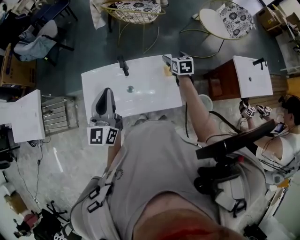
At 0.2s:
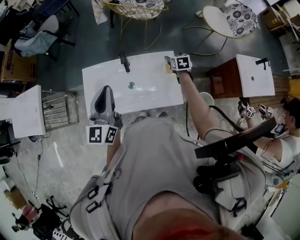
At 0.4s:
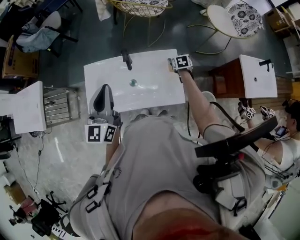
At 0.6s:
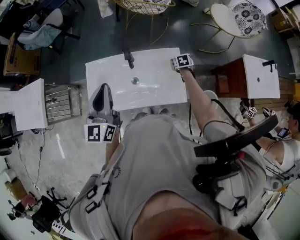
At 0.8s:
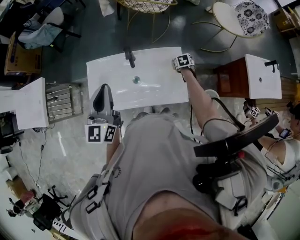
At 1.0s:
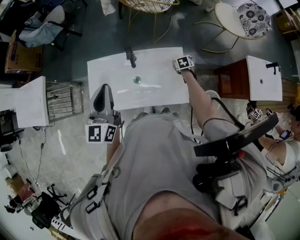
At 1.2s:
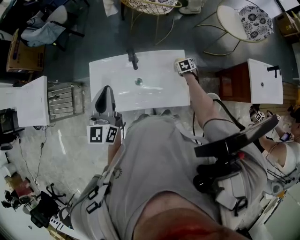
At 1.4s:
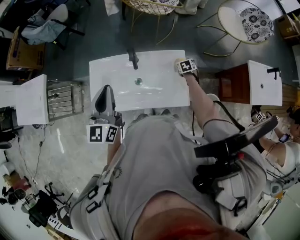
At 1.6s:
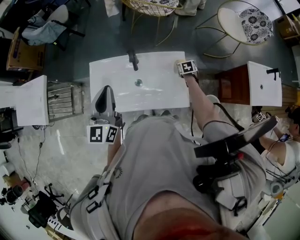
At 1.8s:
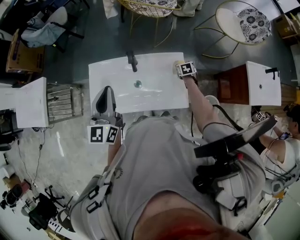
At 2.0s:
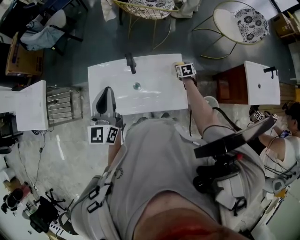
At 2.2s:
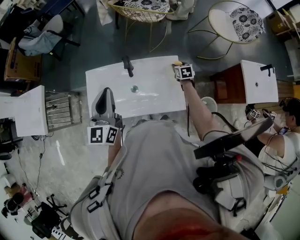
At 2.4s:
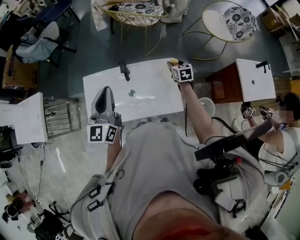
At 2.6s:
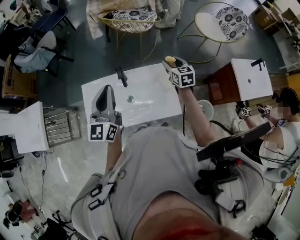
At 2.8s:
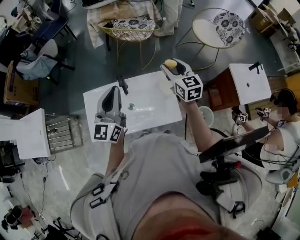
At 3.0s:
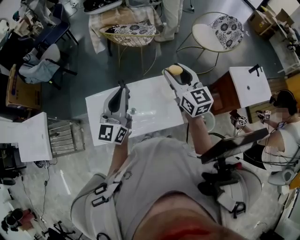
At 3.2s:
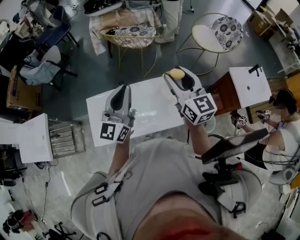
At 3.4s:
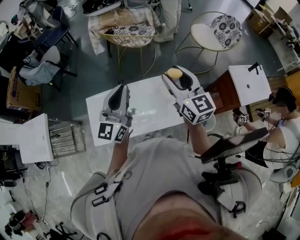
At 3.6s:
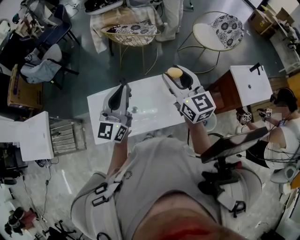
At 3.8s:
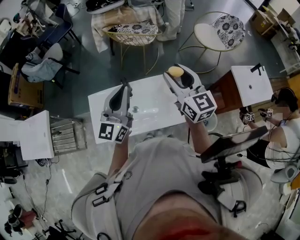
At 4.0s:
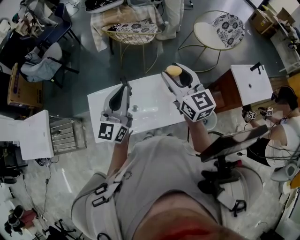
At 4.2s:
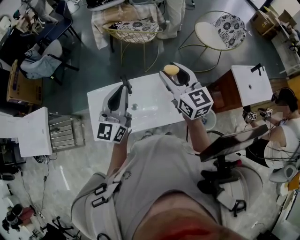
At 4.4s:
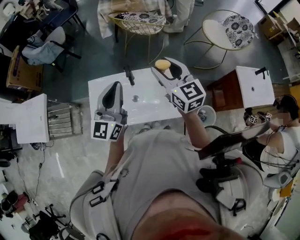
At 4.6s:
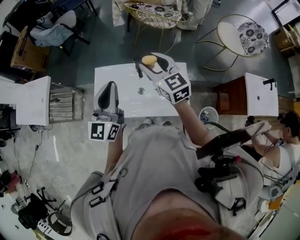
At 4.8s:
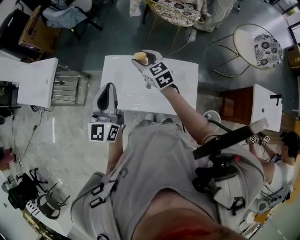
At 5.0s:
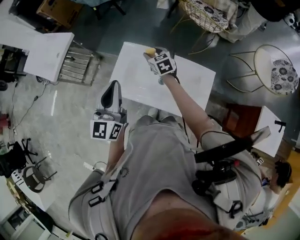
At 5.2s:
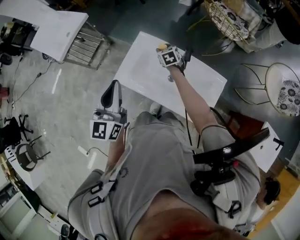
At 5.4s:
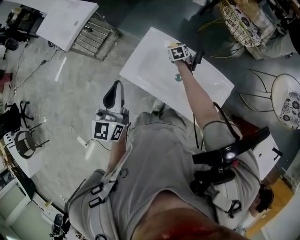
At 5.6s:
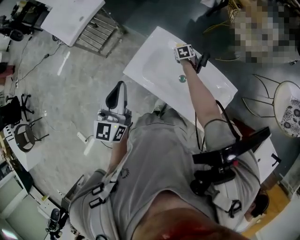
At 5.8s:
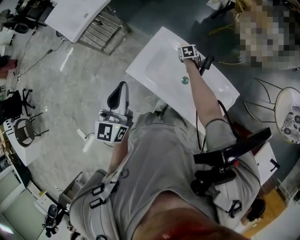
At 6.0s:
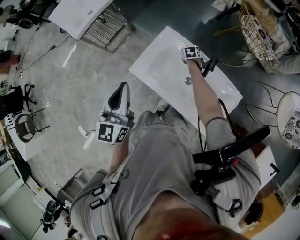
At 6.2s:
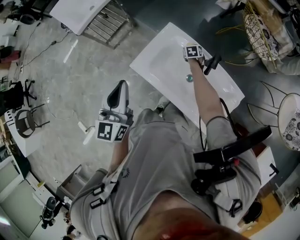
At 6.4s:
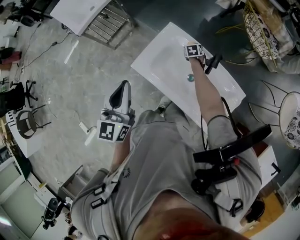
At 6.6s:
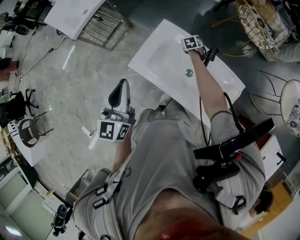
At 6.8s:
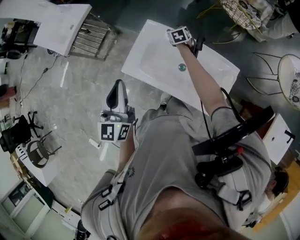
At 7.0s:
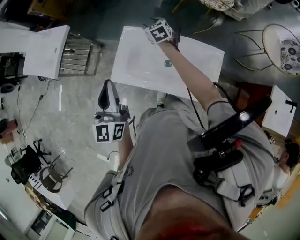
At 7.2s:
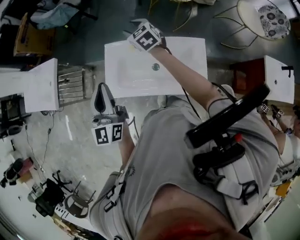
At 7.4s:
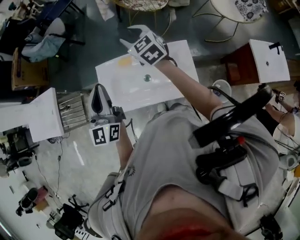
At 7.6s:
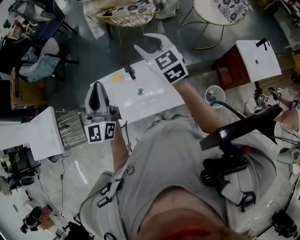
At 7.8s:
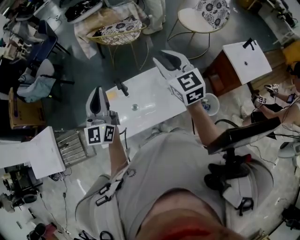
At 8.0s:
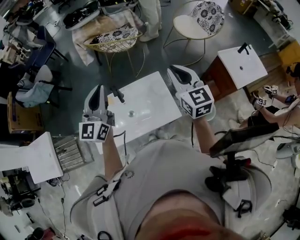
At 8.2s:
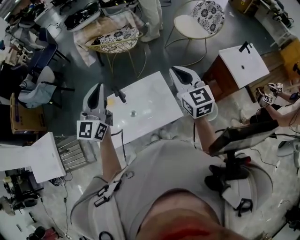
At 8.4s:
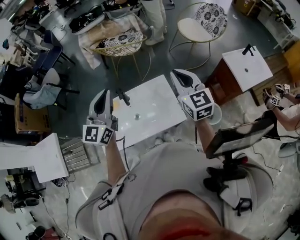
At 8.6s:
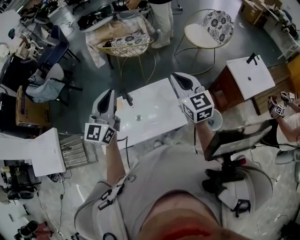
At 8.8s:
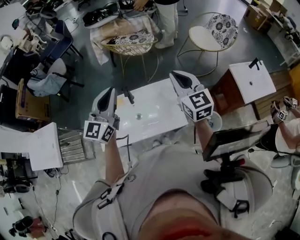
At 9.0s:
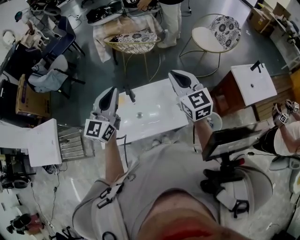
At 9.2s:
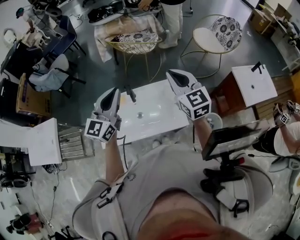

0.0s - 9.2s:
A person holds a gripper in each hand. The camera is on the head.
0.0s - 1.6s: The right gripper is displaced downward by approximately 20 cm, swivels about 20 degrees, and closes up.
1.6s - 3.0s: The right gripper moves upward, some 50 cm, and points its fingers some 60 degrees further upward; the left gripper moves to the right, upward and forward, roughly 10 cm, and swivels approximately 20 degrees.
3.0s - 4.6s: The left gripper goes approximately 10 cm to the left. Meanwhile the right gripper shifts about 15 cm to the left, and rotates approximately 20 degrees.
4.6s - 6.2s: The left gripper moves roughly 25 cm, and changes its angle by some 40 degrees. The right gripper moves downward, some 50 cm, and tips its fingers downward by about 50 degrees.
6.2s - 7.6s: The left gripper moves roughly 25 cm, and swivels about 50 degrees; the right gripper shifts approximately 50 cm upward, and points its fingers roughly 40 degrees further upward.
7.6s - 9.2s: The left gripper is displaced to the right by about 10 cm, and changes its angle by approximately 20 degrees, while the right gripper moves to the right and backward, some 15 cm.

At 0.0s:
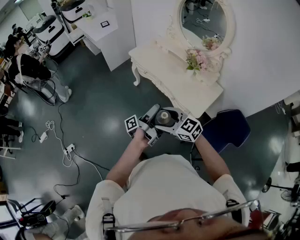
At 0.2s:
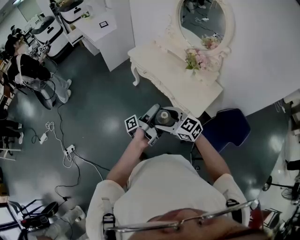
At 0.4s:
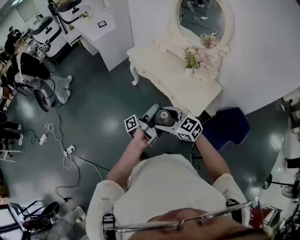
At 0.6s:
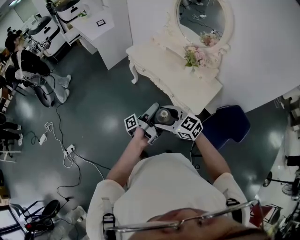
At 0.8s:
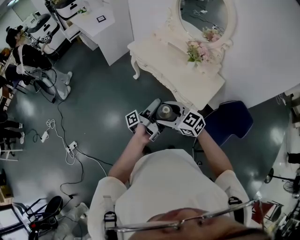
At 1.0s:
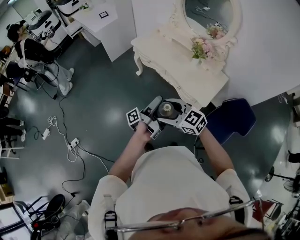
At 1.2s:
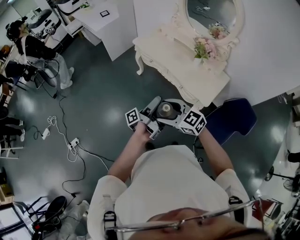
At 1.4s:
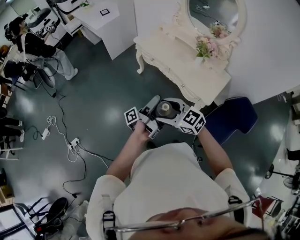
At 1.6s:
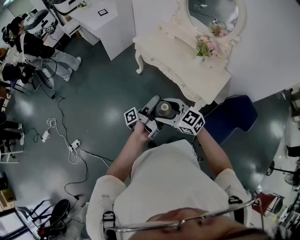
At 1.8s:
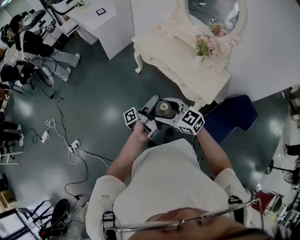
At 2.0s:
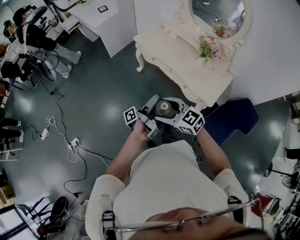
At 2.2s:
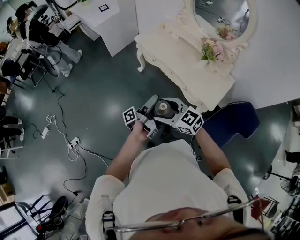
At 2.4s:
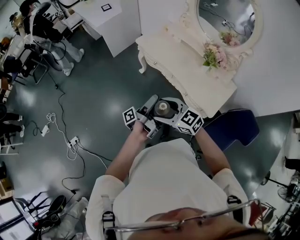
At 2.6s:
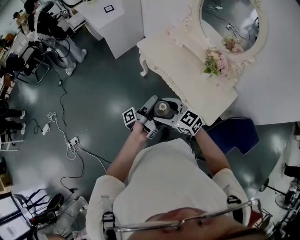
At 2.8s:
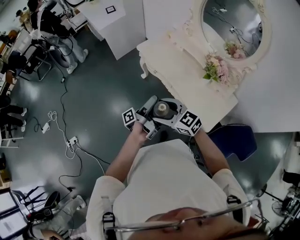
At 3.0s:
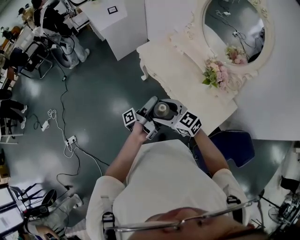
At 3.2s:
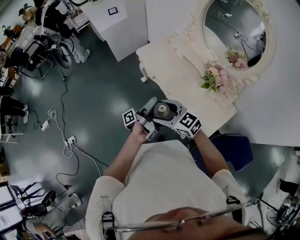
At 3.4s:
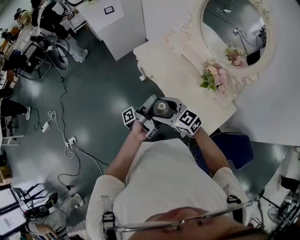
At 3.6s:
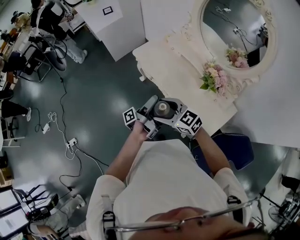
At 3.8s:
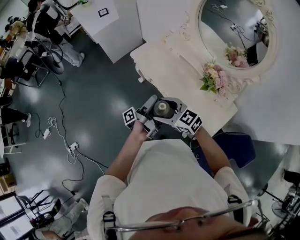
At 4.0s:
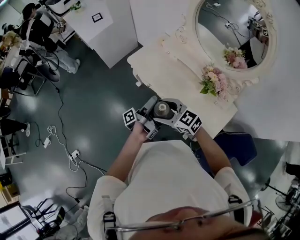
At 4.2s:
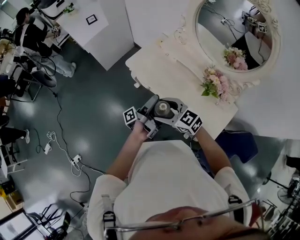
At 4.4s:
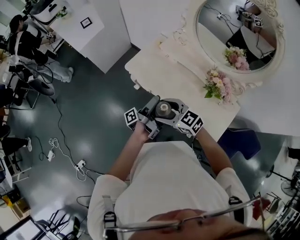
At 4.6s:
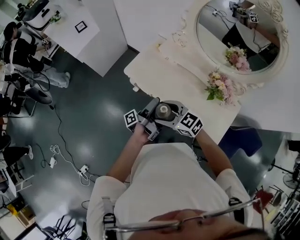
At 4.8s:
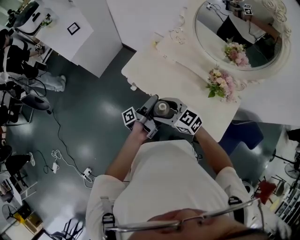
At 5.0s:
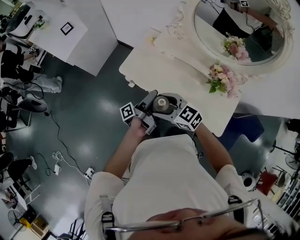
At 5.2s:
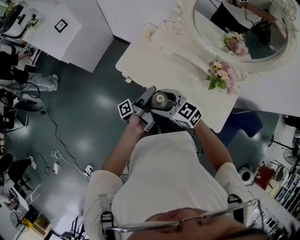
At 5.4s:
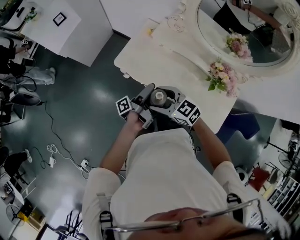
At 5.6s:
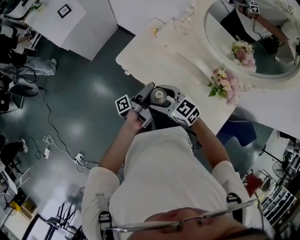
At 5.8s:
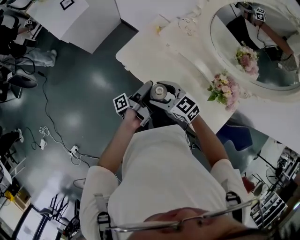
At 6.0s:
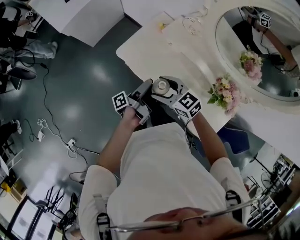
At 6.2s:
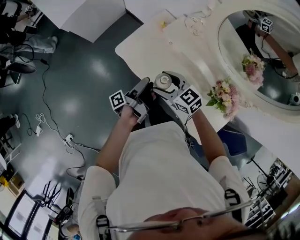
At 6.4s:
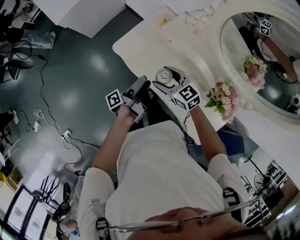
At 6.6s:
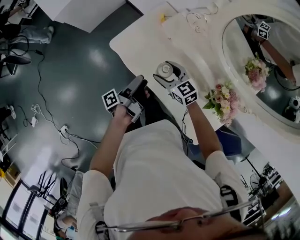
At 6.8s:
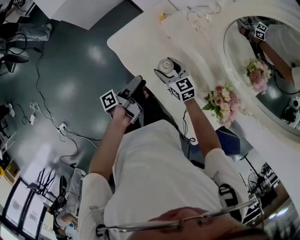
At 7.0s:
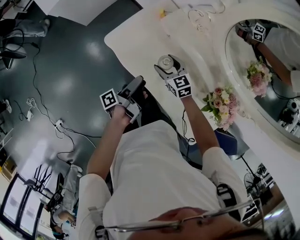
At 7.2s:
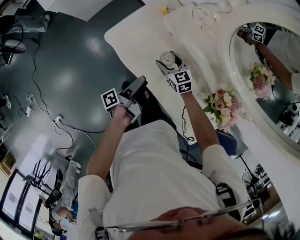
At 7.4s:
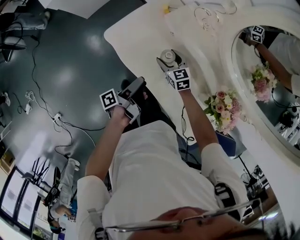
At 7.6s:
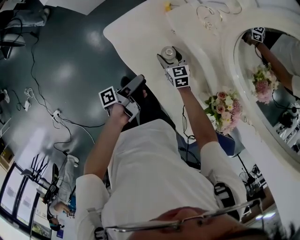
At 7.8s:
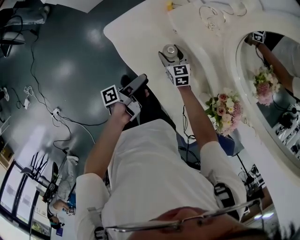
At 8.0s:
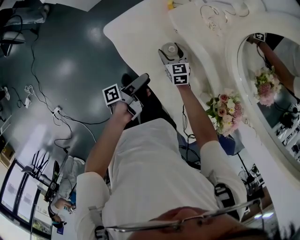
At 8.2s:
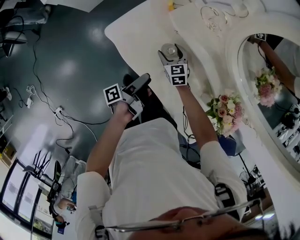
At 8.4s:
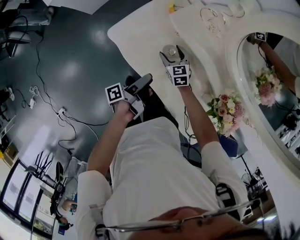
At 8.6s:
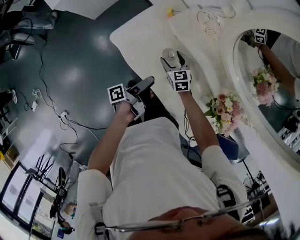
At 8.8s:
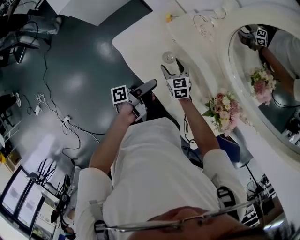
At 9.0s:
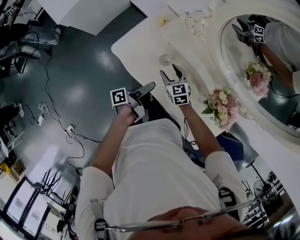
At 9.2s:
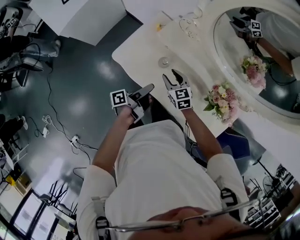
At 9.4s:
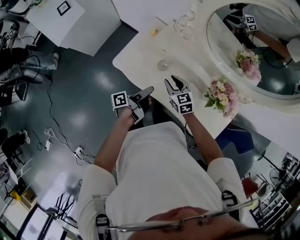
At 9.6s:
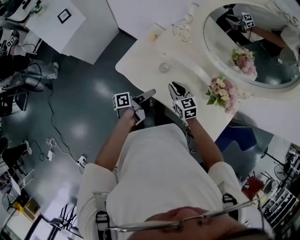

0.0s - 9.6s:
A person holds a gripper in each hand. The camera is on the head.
0.0s - 1.6s: The right gripper ends up approximately 10 cm from where it was.
1.6s - 3.2s: The right gripper changes place by some 25 cm.
3.2s - 4.8s: The right gripper changes place by approximately 25 cm.
4.8s - 6.4s: The right gripper ends up about 20 cm from where it was.
6.4s - 8.0s: The right gripper goes roughly 20 cm downward, and rotates roughly 20 degrees.
8.0s - 9.6s: The right gripper shifts some 20 cm upward, and closes up.

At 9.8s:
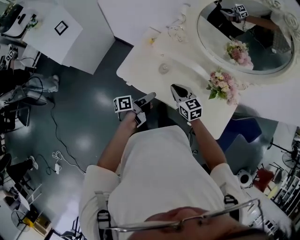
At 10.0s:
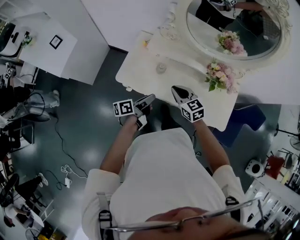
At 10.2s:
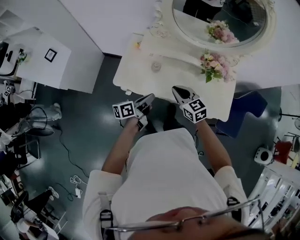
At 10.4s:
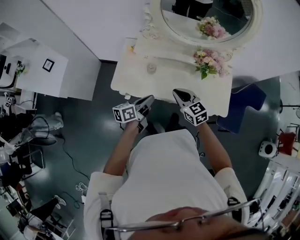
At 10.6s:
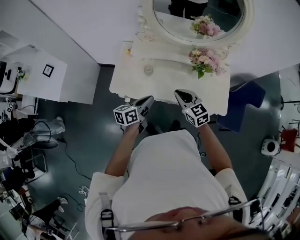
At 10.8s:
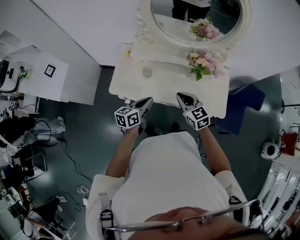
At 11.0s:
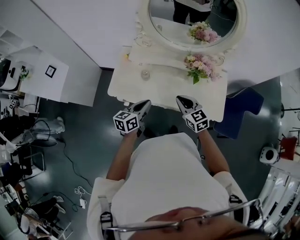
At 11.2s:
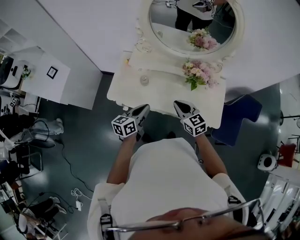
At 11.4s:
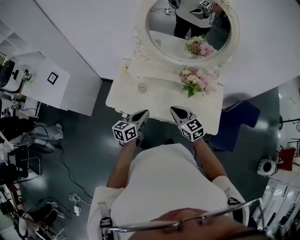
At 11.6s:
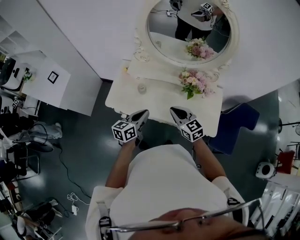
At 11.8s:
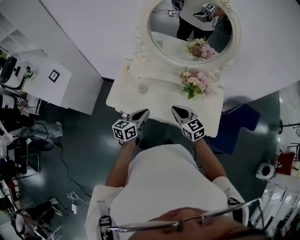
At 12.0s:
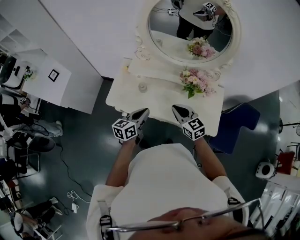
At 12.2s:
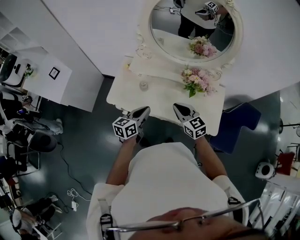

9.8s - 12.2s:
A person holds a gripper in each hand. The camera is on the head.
9.8s - 11.0s: The right gripper shifts by approximately 15 cm.

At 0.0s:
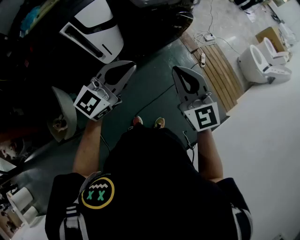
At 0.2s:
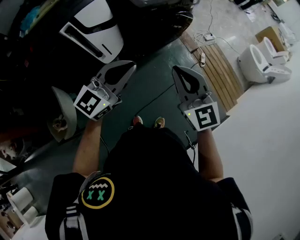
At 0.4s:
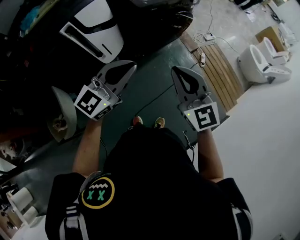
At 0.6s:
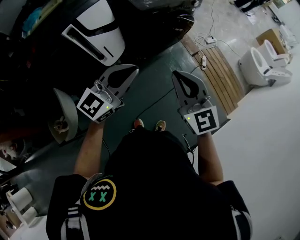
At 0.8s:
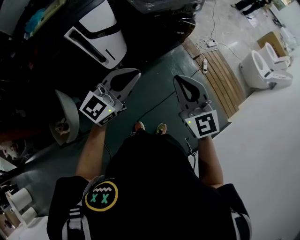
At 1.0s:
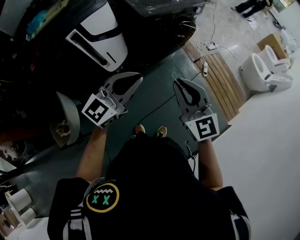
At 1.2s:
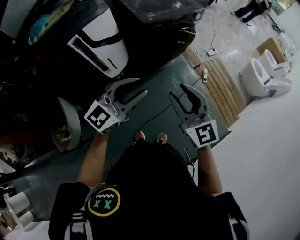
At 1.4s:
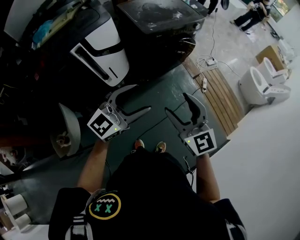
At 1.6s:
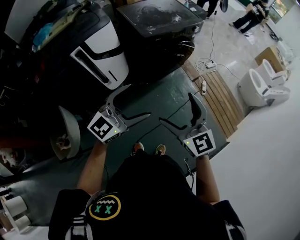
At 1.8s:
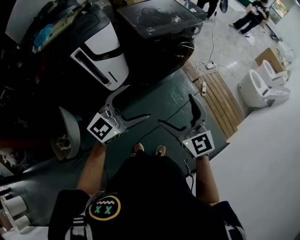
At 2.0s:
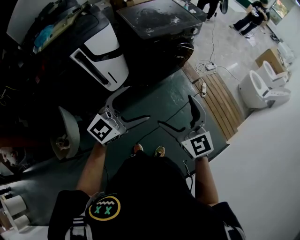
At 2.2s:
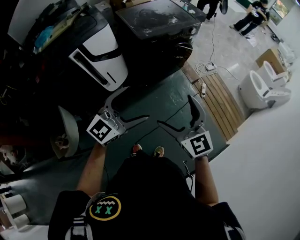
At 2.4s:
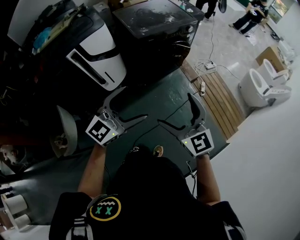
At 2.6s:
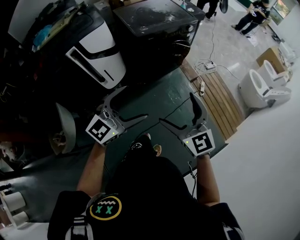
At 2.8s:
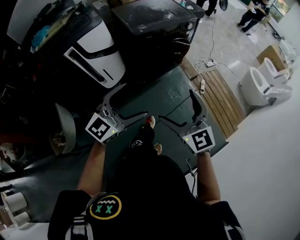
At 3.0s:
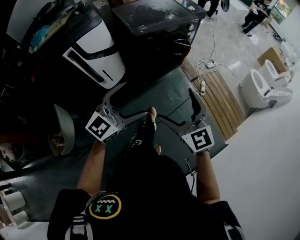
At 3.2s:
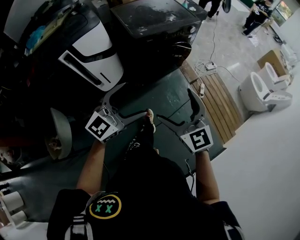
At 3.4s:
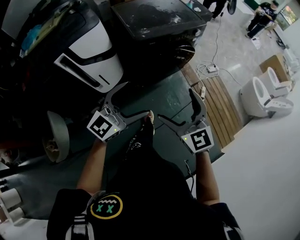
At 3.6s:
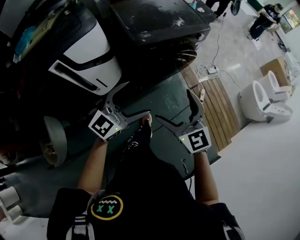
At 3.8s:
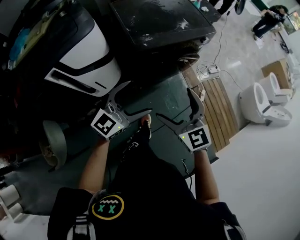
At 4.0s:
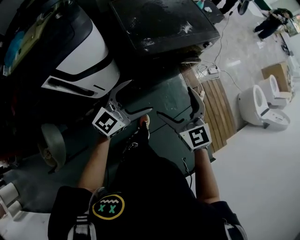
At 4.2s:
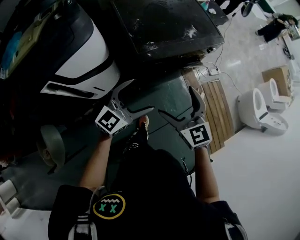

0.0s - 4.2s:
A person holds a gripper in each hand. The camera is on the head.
0.0s - 1.4s: The left gripper opens up. The right gripper opens up.
1.4s - 2.8s: Both grippers travel together to the right, about 10 cm. The right gripper opens its fingers.
2.8s - 4.2s: The two grippers go approximately 40 cm forward.
